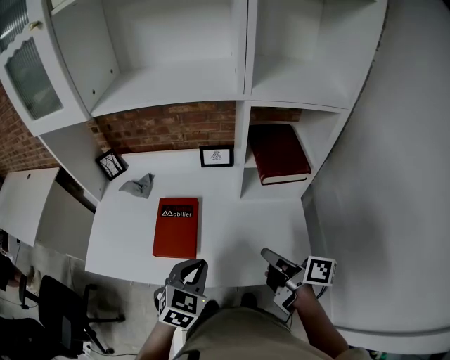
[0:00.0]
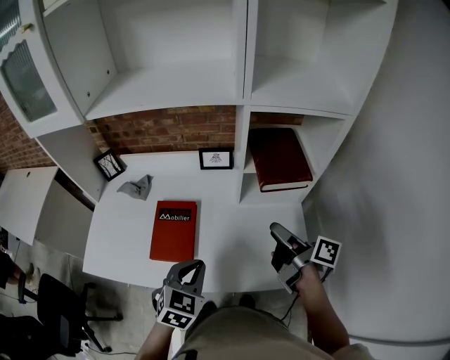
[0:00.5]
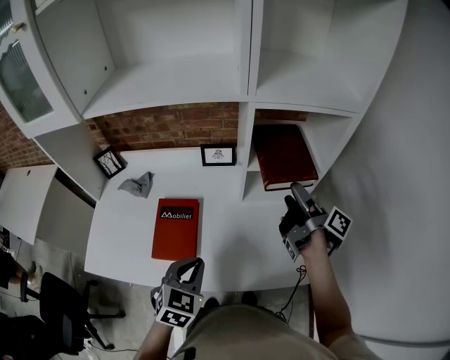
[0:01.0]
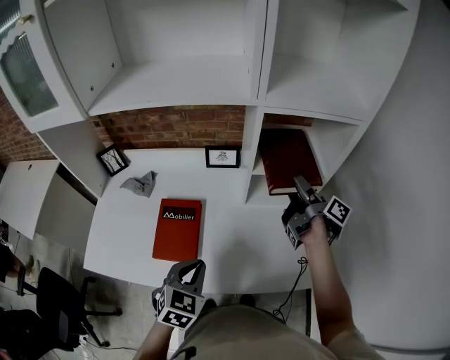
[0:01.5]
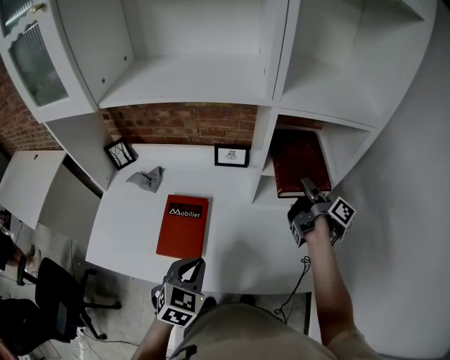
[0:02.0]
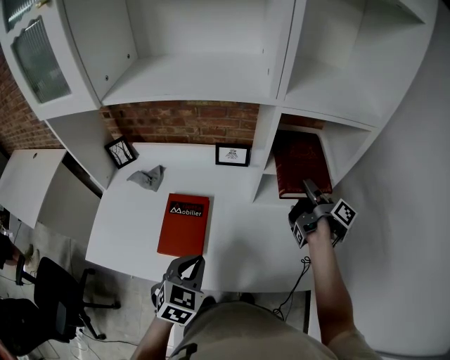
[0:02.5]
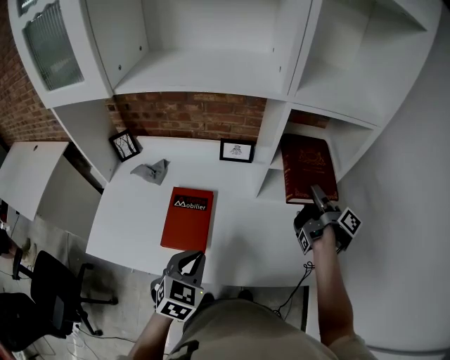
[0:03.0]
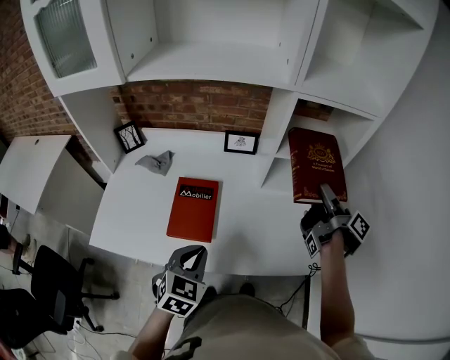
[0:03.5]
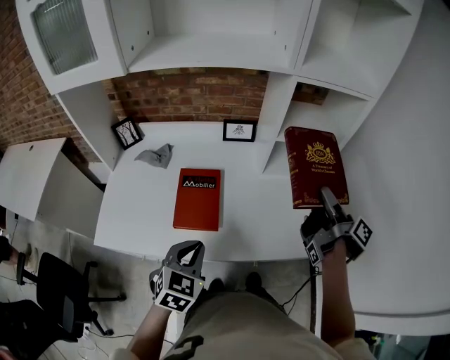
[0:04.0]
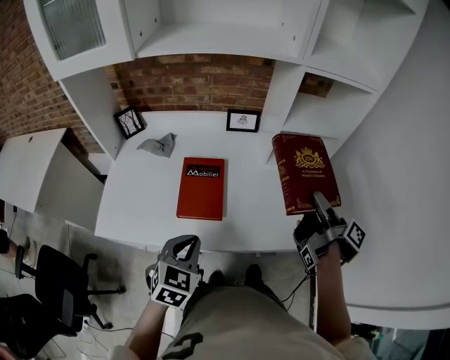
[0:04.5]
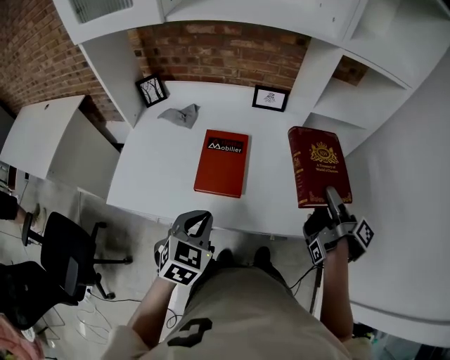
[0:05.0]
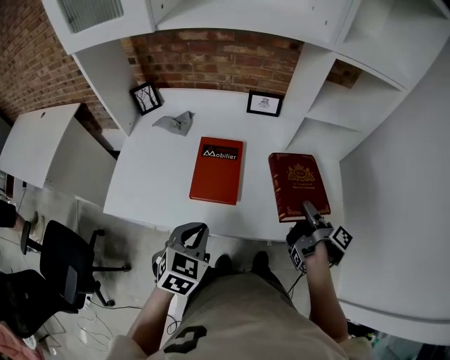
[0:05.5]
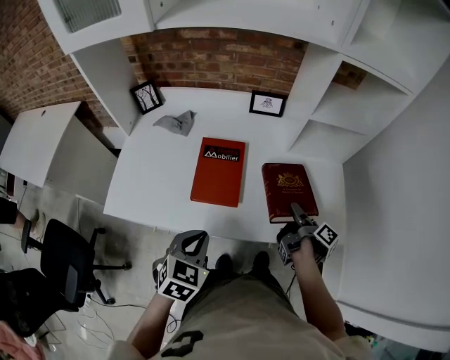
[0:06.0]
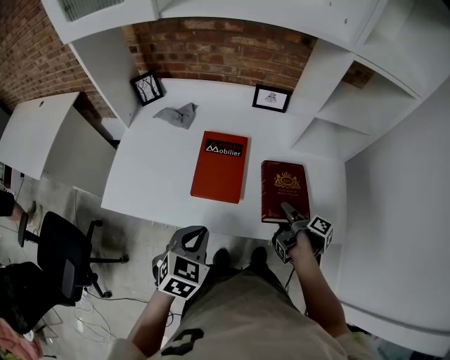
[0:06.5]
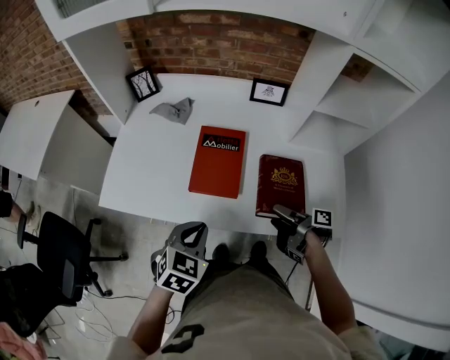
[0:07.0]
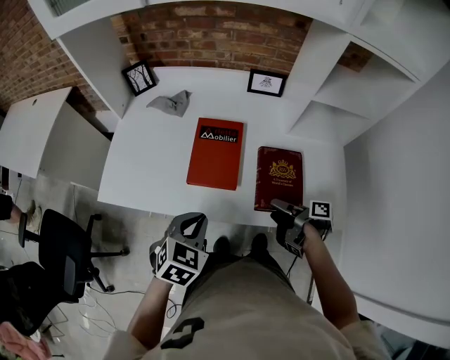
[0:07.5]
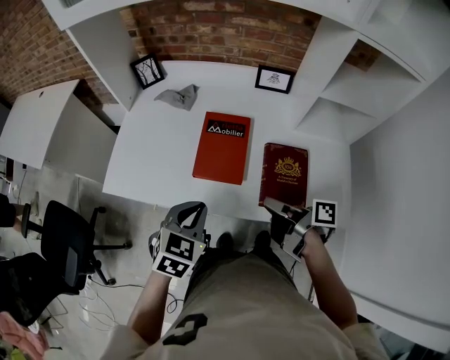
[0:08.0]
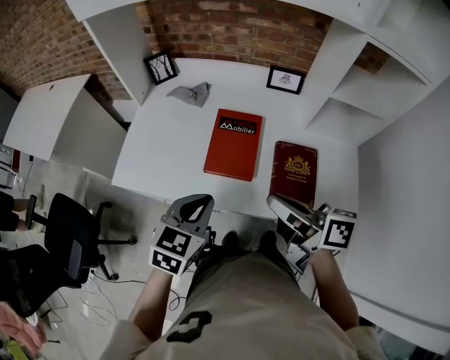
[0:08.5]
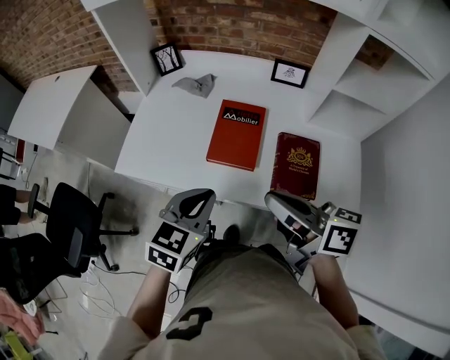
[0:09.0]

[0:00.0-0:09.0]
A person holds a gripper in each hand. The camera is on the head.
0:00.0 to 0:02.0: The right gripper goes some 25 cm forward and to the right, changes its angle by some 30 degrees, and opens.
0:02.0 to 0:04.5: The right gripper shifts some 20 cm backward, while the left gripper travels to the left and backward by roughly 15 cm.
0:04.5 to 0:07.0: The left gripper moves downward, about 5 cm. The right gripper moves downward and to the left, roughly 25 cm, and swivels some 40 degrees.
0:07.0 to 0:09.0: The right gripper travels upward and to the left by approximately 25 cm, rotates around the line of its fingers by about 60 degrees, counterclockwise from behind, and closes, while the left gripper heads upward, covering approximately 5 cm.

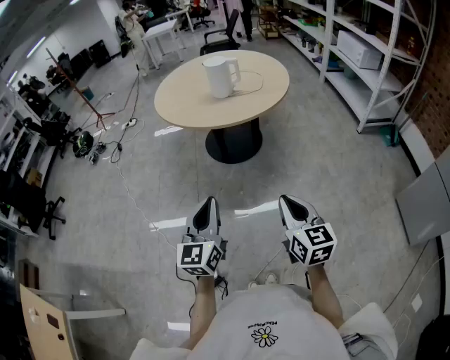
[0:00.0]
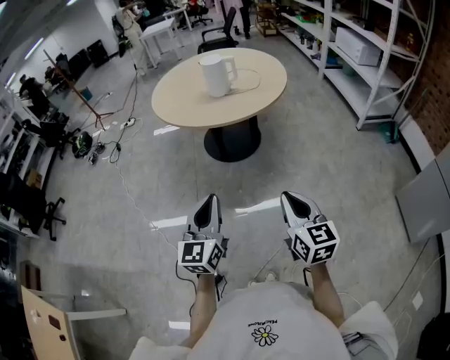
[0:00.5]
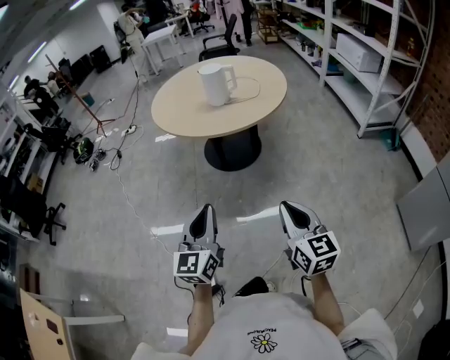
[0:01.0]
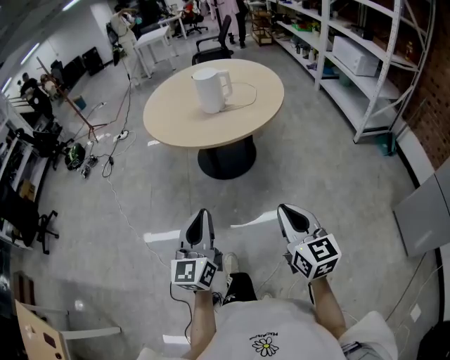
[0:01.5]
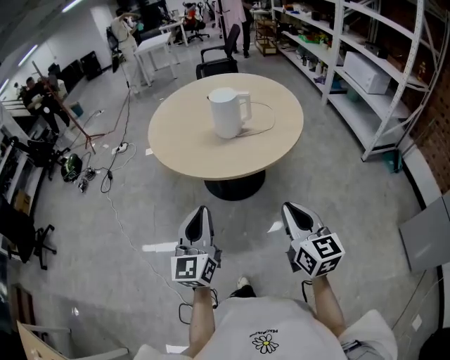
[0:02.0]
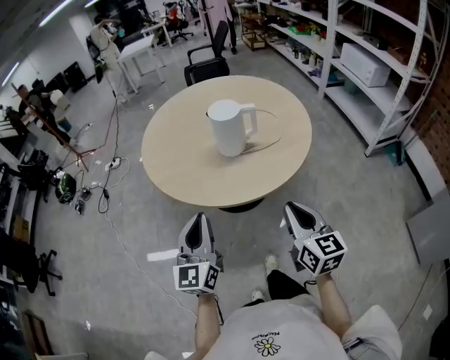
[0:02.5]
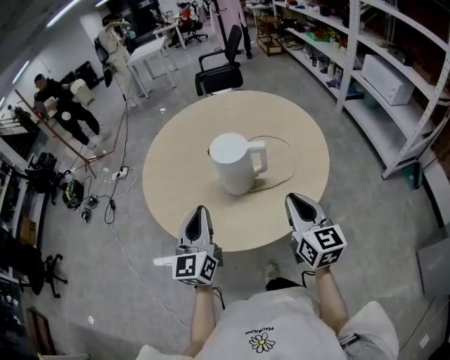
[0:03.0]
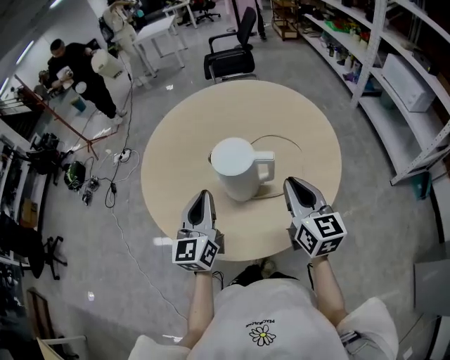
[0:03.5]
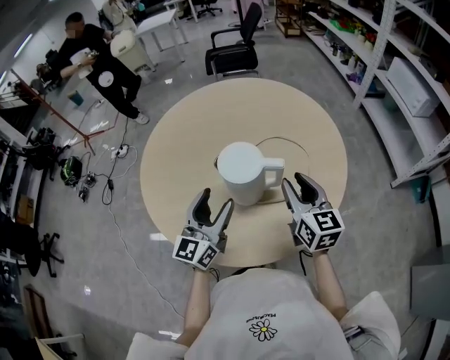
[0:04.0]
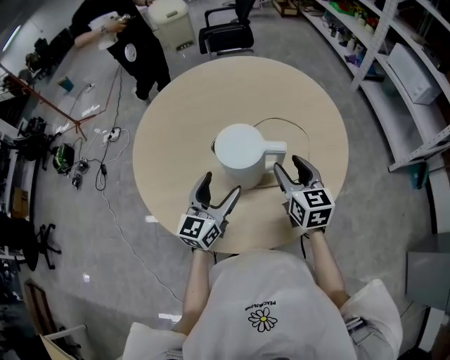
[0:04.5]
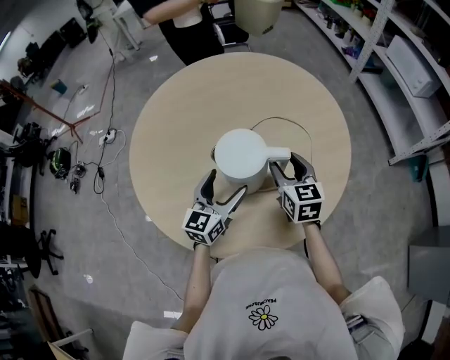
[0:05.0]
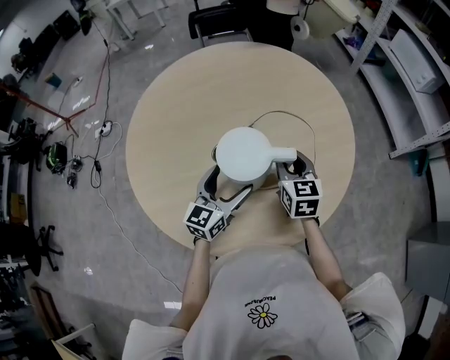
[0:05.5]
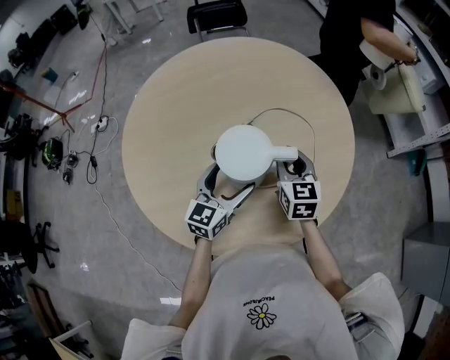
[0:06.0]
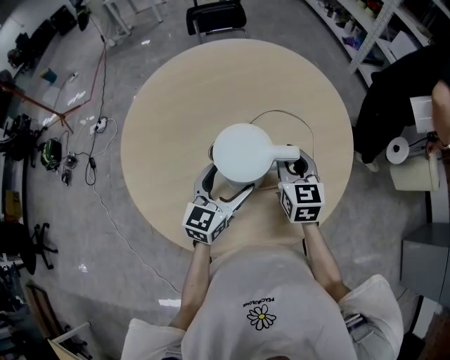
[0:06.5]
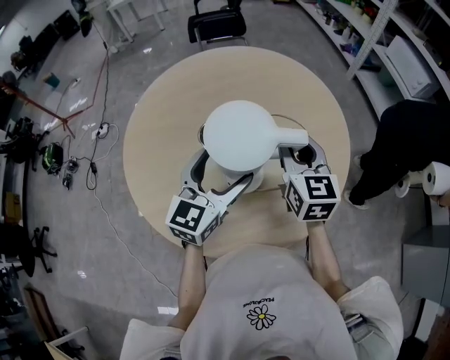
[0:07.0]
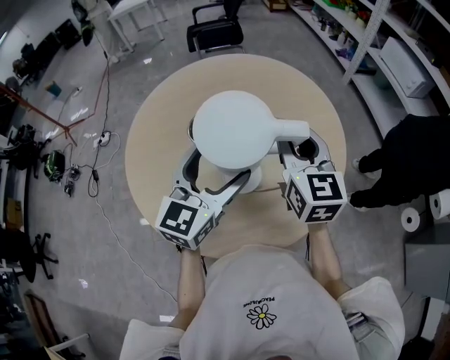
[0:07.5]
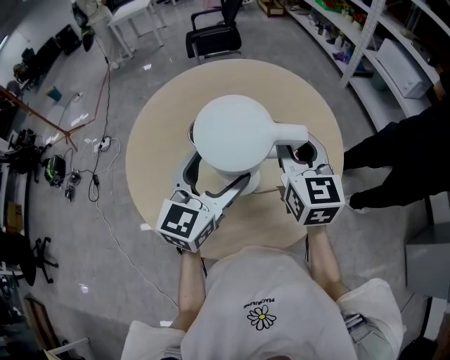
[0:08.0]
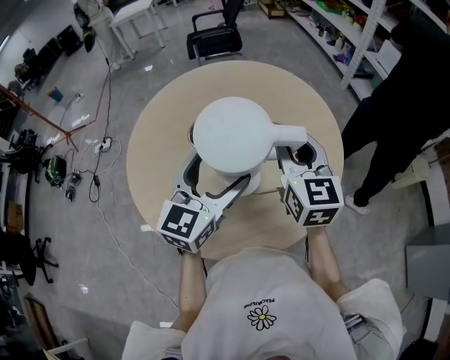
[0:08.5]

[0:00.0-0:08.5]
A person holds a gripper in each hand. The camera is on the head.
0:00.0 to 0:02.0: The grippers both shift forward by approximately 25 cm.
0:02.0 to 0:04.0: The pair of grippers is taken forward, approximately 50 cm. The right gripper opens its fingers, while the left gripper opens.
0:04.0 to 0:06.5: The right gripper travels forward and downward by about 10 cm. The left gripper goes approximately 10 cm downward and forward, rotates roughly 20 degrees, and opens its fingers.
0:06.5 to 0:08.5: The grippers both shift upward by roughly 15 cm.

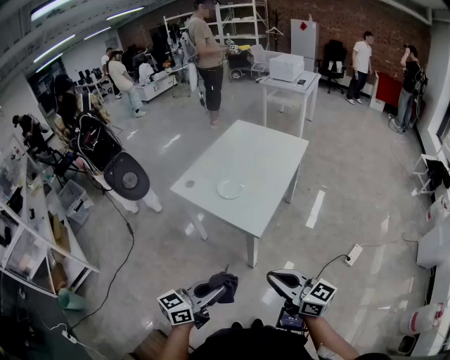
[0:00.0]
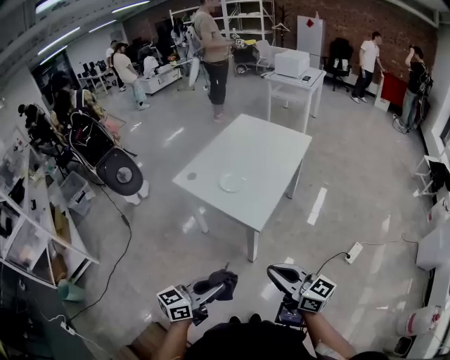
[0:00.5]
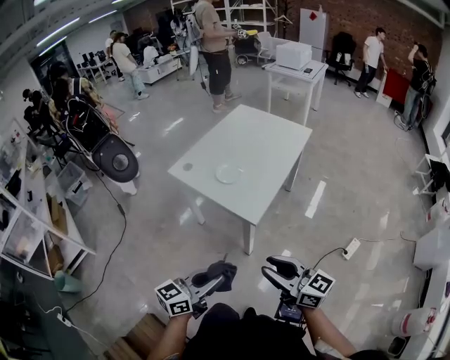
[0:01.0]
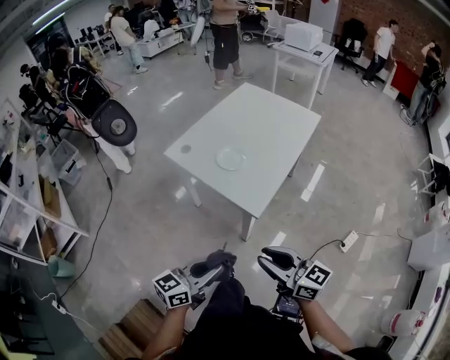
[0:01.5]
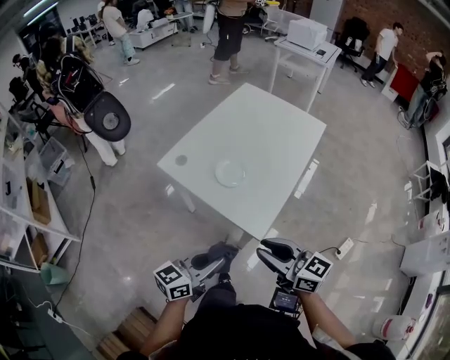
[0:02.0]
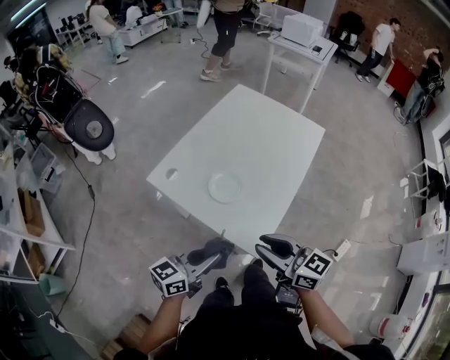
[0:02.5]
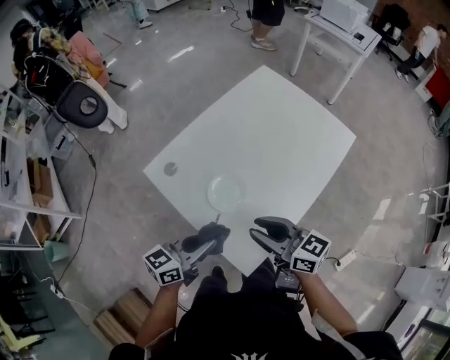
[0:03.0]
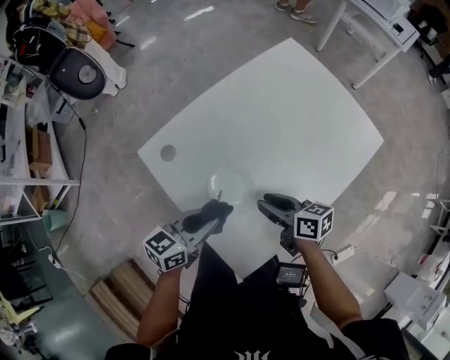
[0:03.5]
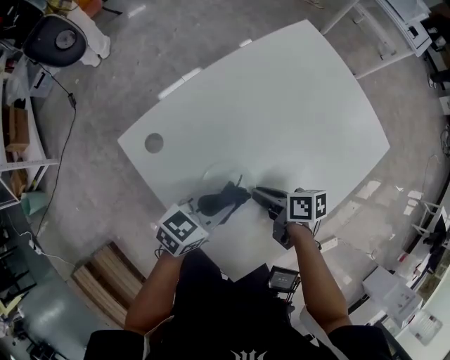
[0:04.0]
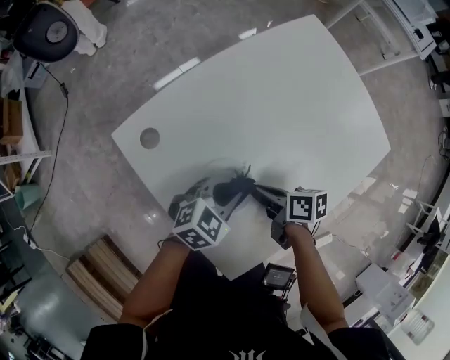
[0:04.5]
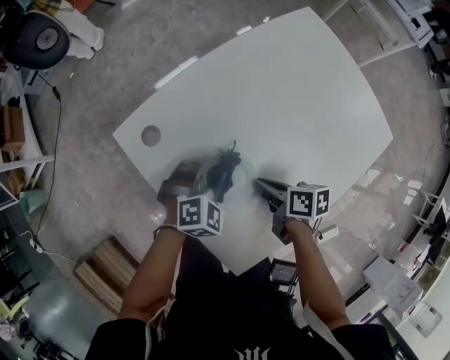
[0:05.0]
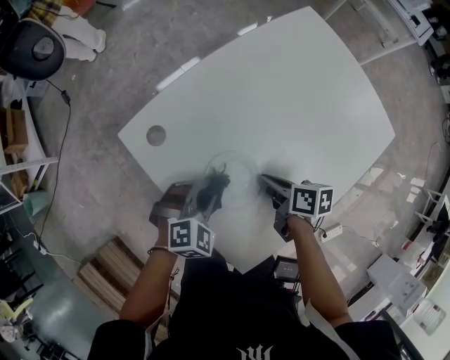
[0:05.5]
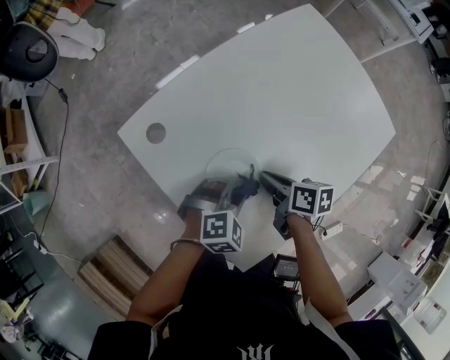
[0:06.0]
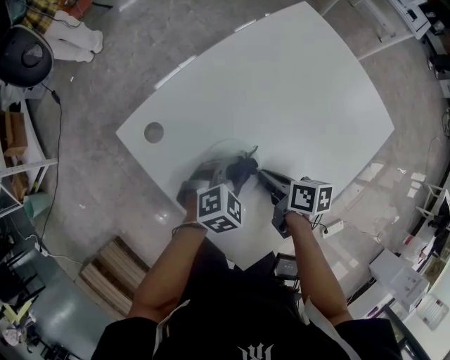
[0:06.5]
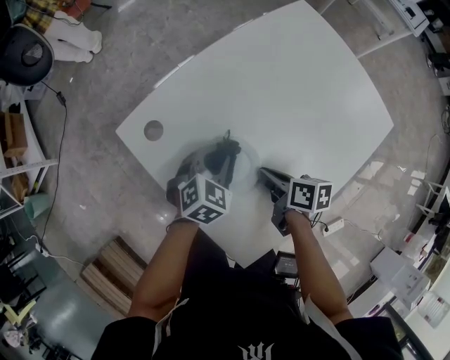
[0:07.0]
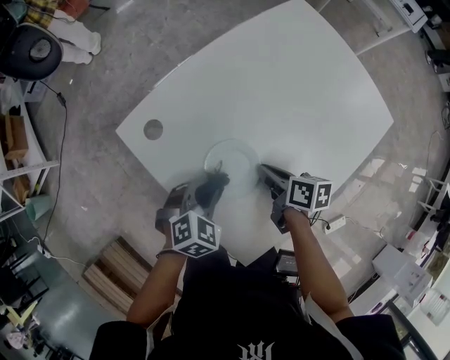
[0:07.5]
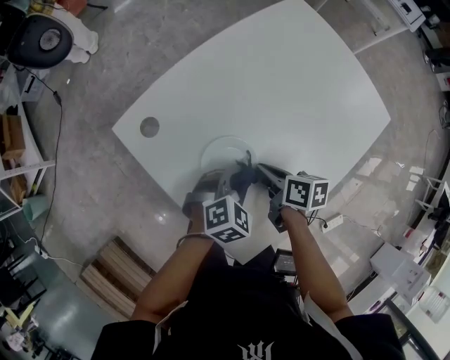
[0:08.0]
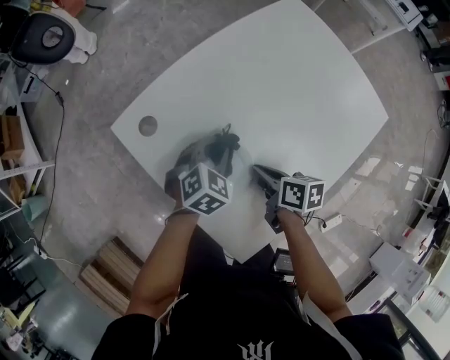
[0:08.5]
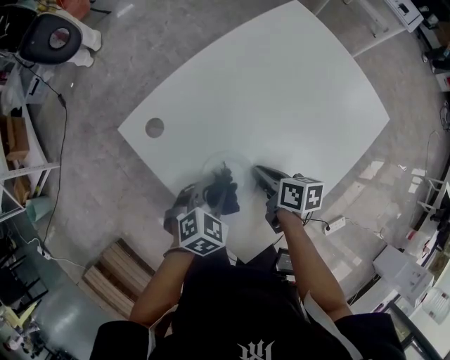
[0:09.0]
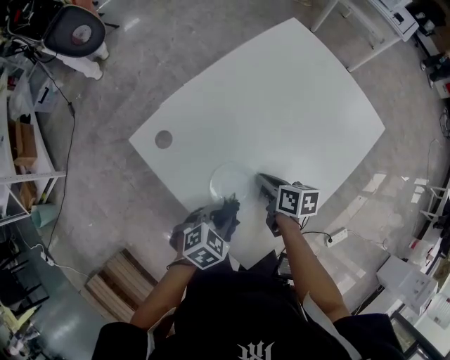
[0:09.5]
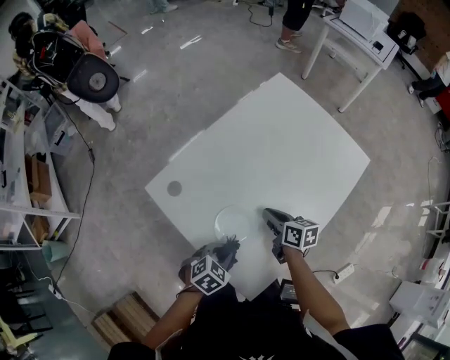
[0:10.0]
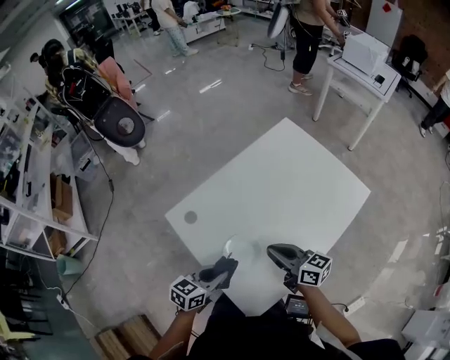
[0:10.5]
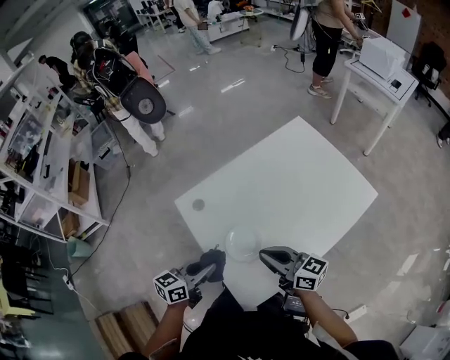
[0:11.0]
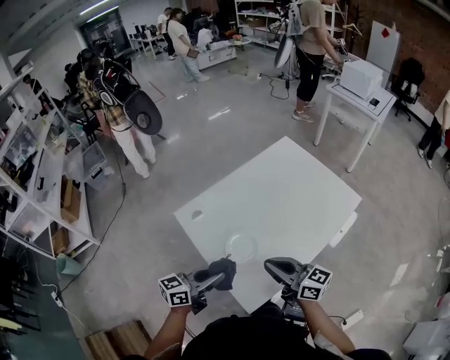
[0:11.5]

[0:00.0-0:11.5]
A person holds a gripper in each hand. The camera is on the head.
0:00.0 to 0:02.0: The two grippers go roughly 20 cm forward.
0:02.0 to 0:04.0: The pair of grippers is taken about 40 cm. The left gripper turns by roughly 20 degrees. The right gripper tips its fingers downward by some 30 degrees.
0:04.0 to 0:06.0: The left gripper heads downward, covering roughly 5 cm, and twists some 40 degrees clockwise, seen from behind.
0:06.0 to 0:07.5: The left gripper goes some 10 cm to the left, and travels forward and back again, some 10 cm each way.
0:07.5 to 0:09.5: The left gripper travels backward by about 10 cm.
0:09.5 to 0:11.5: The left gripper heads upward, covering roughly 20 cm, and tilts its fingers about 50 degrees upward; the right gripper travels upward and backward by about 30 cm, and tilts its fingers roughly 50 degrees upward.
